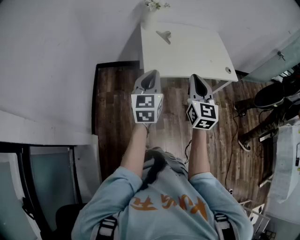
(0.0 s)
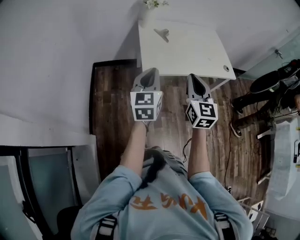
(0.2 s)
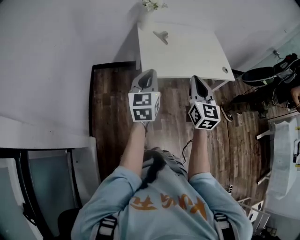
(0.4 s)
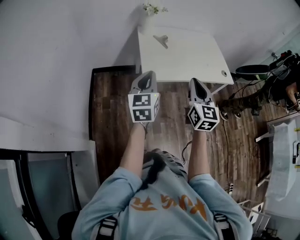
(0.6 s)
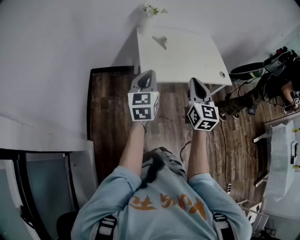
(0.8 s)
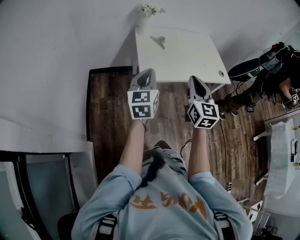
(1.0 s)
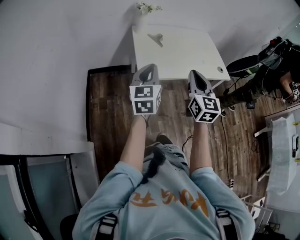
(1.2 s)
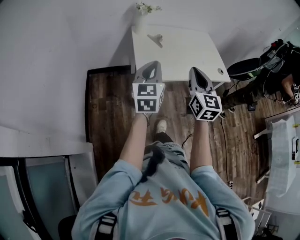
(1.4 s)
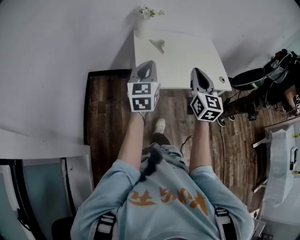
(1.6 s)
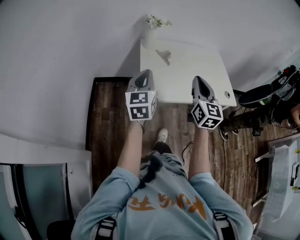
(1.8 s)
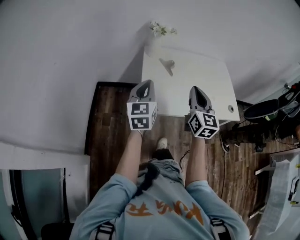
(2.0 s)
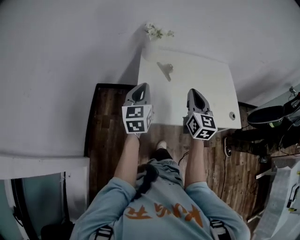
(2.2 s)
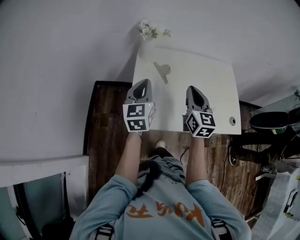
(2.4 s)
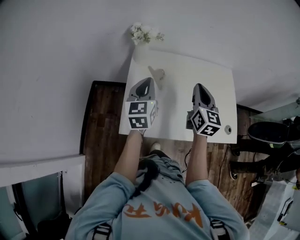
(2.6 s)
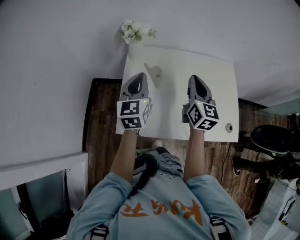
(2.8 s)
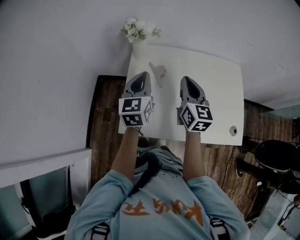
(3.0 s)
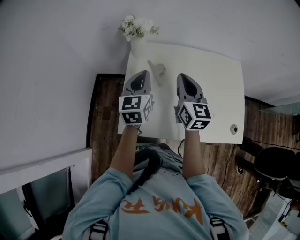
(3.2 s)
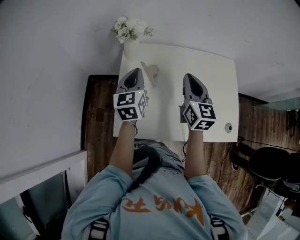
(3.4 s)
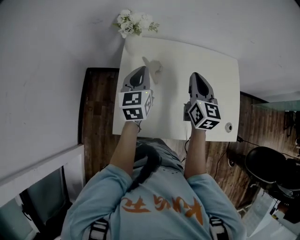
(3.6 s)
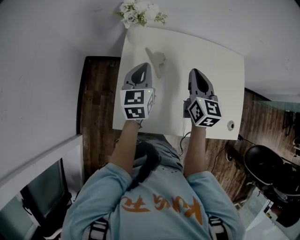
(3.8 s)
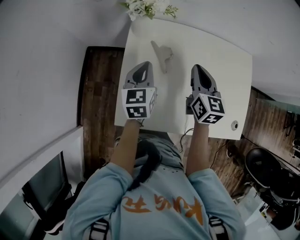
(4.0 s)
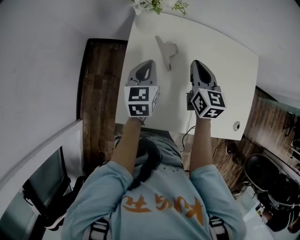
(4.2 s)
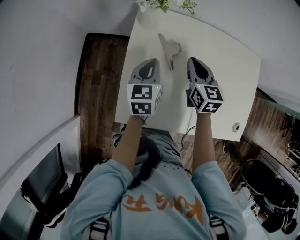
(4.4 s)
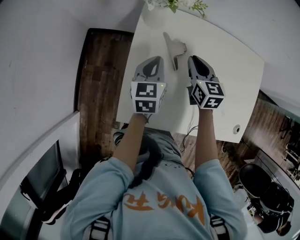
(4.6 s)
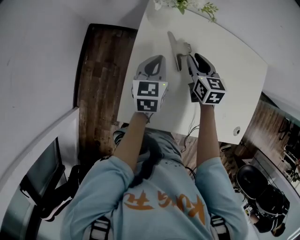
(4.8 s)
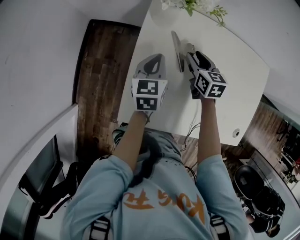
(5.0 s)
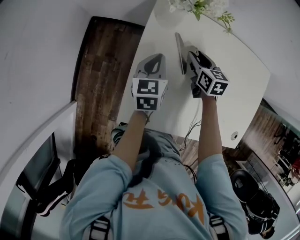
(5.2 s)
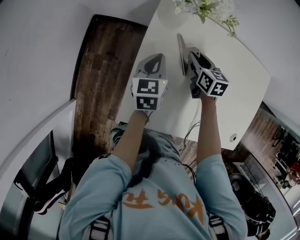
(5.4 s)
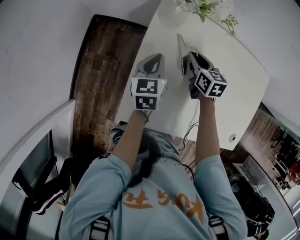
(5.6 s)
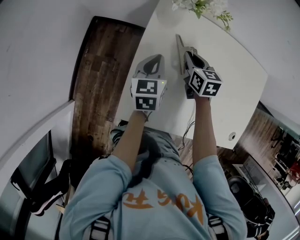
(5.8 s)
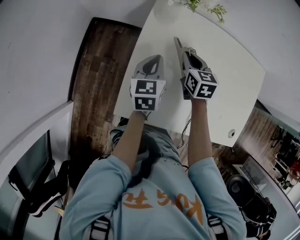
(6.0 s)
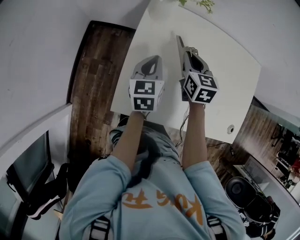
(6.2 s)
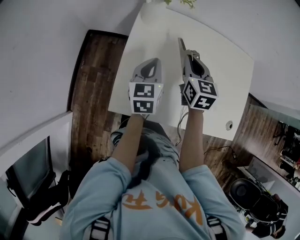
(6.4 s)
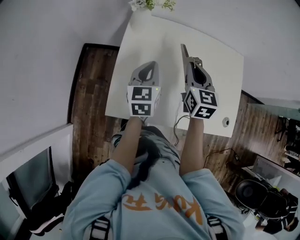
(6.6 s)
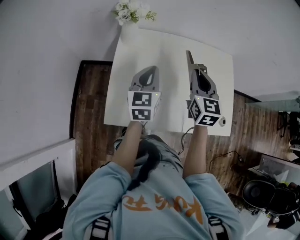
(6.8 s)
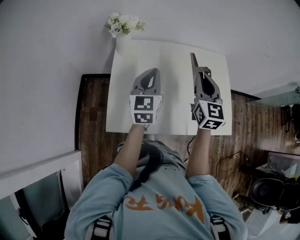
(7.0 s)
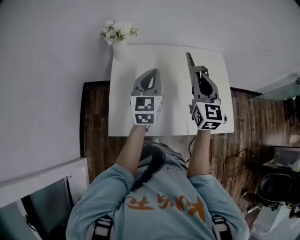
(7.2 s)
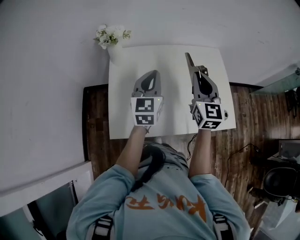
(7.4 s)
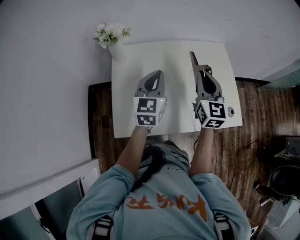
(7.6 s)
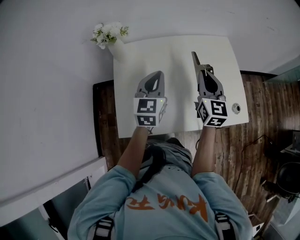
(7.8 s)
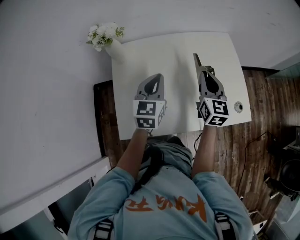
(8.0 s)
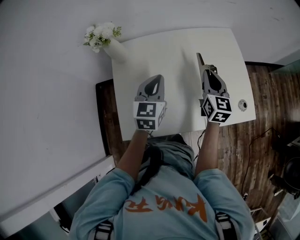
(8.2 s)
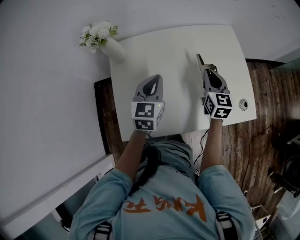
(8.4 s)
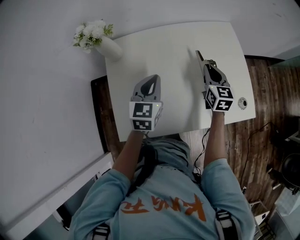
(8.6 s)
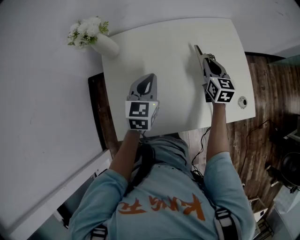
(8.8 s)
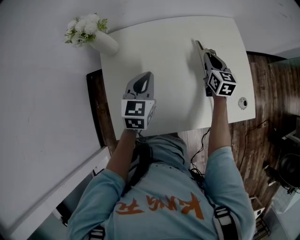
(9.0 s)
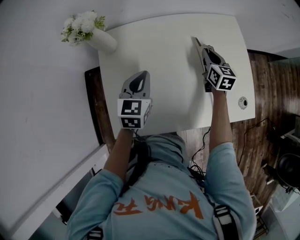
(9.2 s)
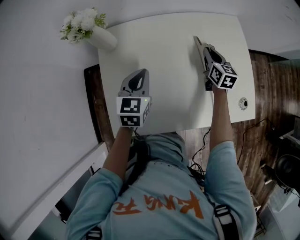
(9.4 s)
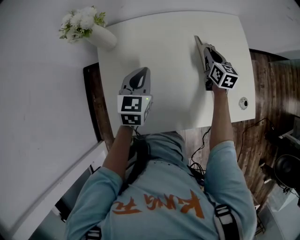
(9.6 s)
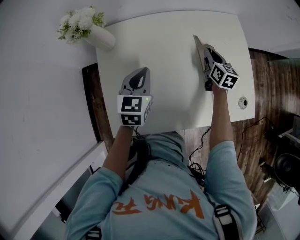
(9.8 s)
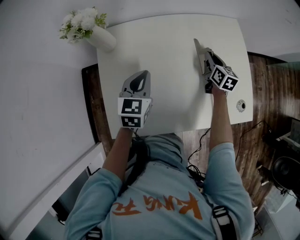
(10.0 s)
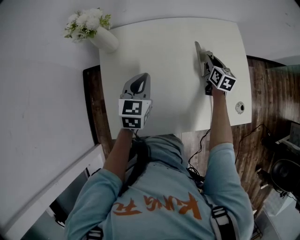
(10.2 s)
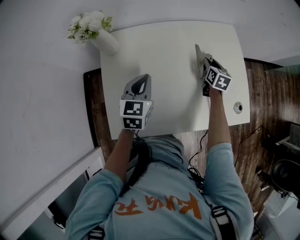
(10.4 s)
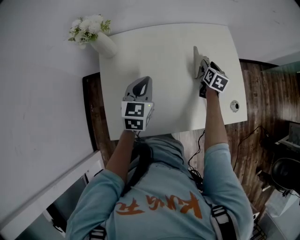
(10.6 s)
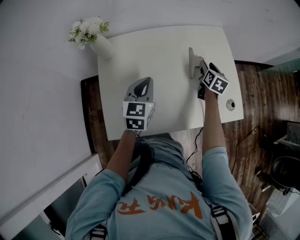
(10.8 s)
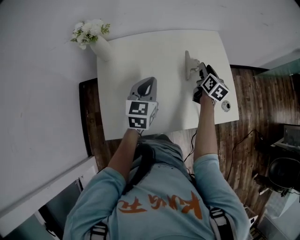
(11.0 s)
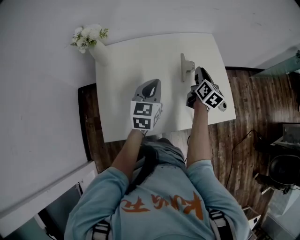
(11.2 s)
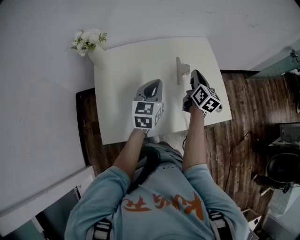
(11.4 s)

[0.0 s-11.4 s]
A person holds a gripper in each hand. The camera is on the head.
0.0 to 1.4 s: The left gripper moves forward, approximately 5 cm.
1.4 to 2.8 s: The grippers both shift forward by about 40 cm.
2.8 to 4.2 s: The left gripper travels downward and forward by about 15 cm. The right gripper travels downward, forward and to the left by some 15 cm.
4.2 to 5.6 s: The left gripper heads downward, covering about 5 cm. Meanwhile the right gripper is displaced downward, forward and to the left by approximately 15 cm, rotates some 20 degrees, and opens and closes again.
5.6 to 7.2 s: The left gripper shifts approximately 30 cm upward, to the right and backward, and rotates about 30 degrees; the right gripper goes approximately 40 cm upward, backward and to the right, and points its fingers roughly 30 degrees further upward.
7.2 to 8.6 s: The left gripper is displaced downward by about 10 cm, and changes its angle by some 20 degrees. Meanwhile the right gripper goes about 25 cm downward, to the right and forward, and rotates some 20 degrees.
8.6 to 10.0 s: The right gripper shifts approximately 10 cm downward and forward. Meanwhile the left gripper ends up some 5 cm from where it was.
10.0 to 11.4 s: The left gripper heads to the right and upward, covering about 15 cm; the right gripper travels upward and backward by about 20 cm, and opens and closes again.

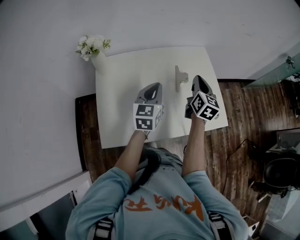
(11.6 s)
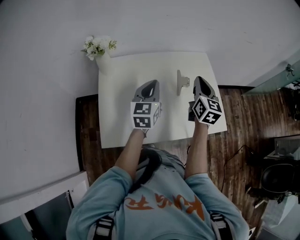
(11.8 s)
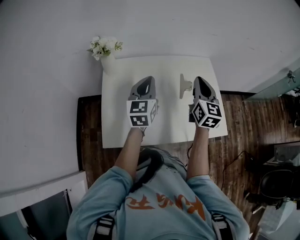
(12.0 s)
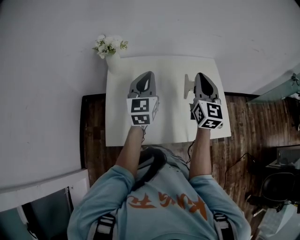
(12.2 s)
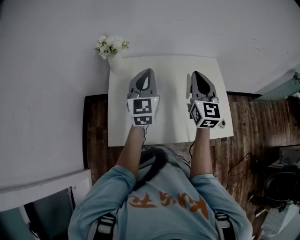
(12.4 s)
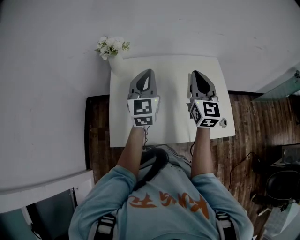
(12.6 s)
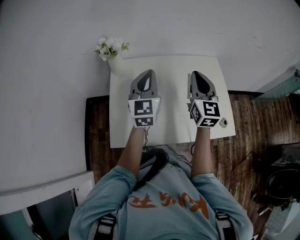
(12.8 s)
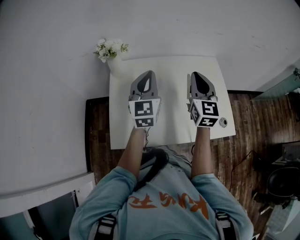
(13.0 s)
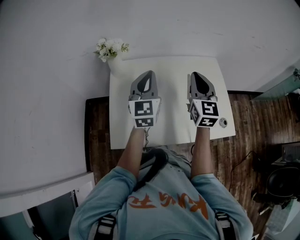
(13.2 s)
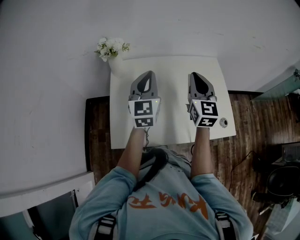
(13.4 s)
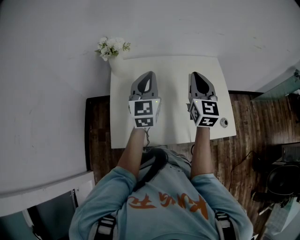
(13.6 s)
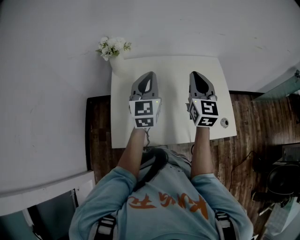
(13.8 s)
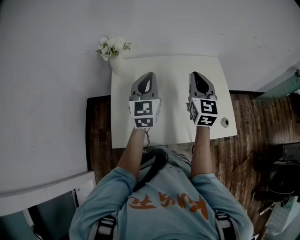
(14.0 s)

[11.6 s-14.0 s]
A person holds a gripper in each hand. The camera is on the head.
11.6 to 12.8 s: The right gripper is displaced to the left and upward by roughly 15 cm, and changes its angle by roughly 30 degrees. Meanwhile the left gripper shifts approximately 15 cm upward and to the left, and turns by approximately 20 degrees.
12.8 to 14.0 s: The grippers make only small movements.

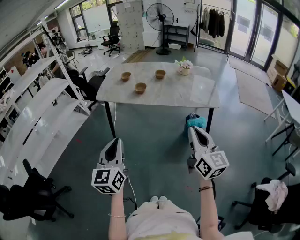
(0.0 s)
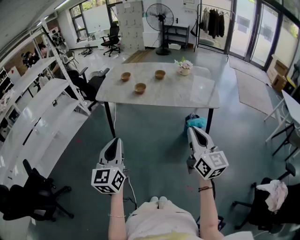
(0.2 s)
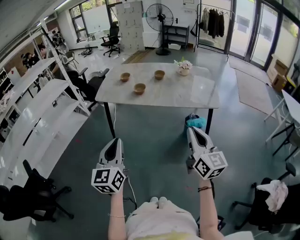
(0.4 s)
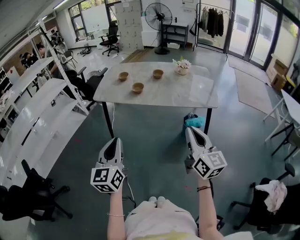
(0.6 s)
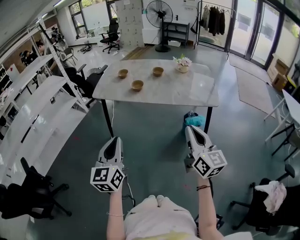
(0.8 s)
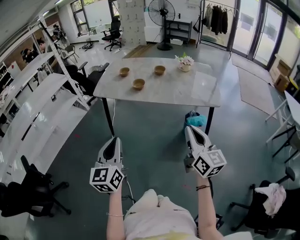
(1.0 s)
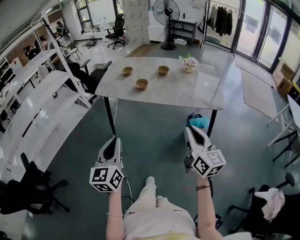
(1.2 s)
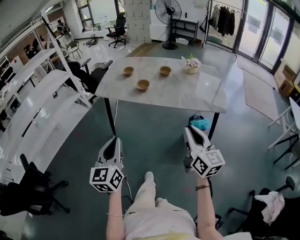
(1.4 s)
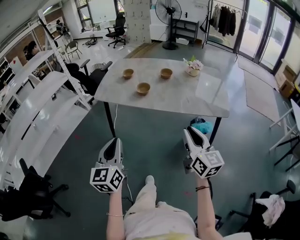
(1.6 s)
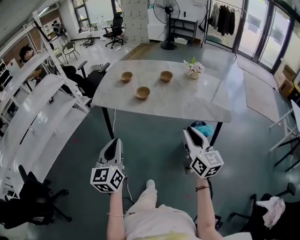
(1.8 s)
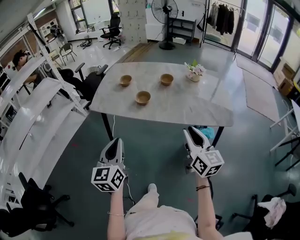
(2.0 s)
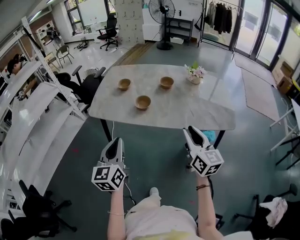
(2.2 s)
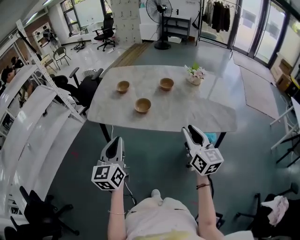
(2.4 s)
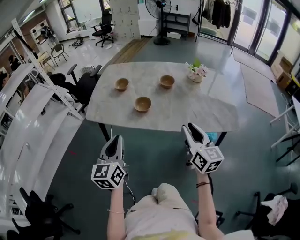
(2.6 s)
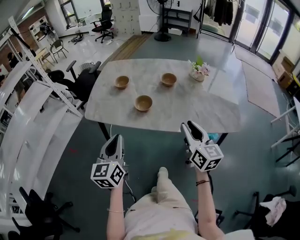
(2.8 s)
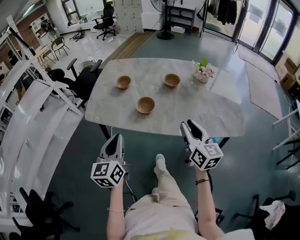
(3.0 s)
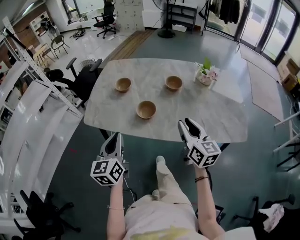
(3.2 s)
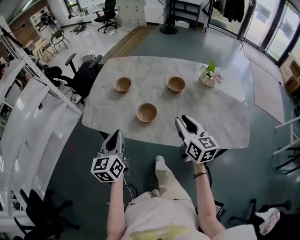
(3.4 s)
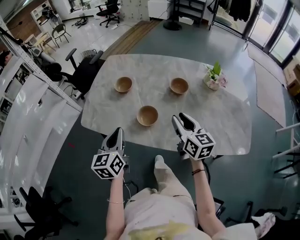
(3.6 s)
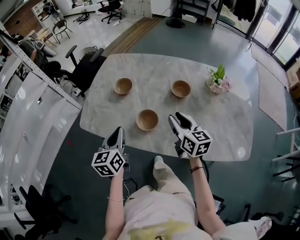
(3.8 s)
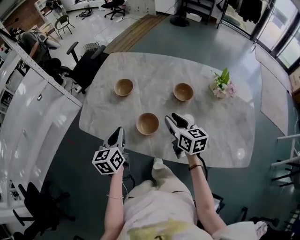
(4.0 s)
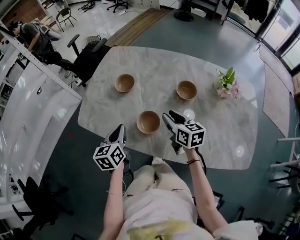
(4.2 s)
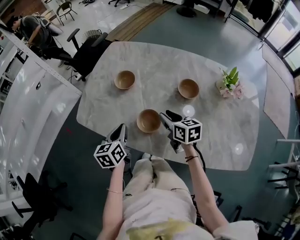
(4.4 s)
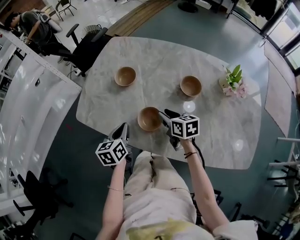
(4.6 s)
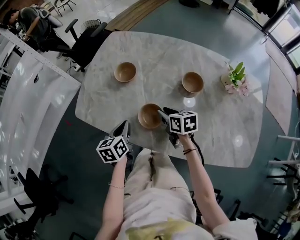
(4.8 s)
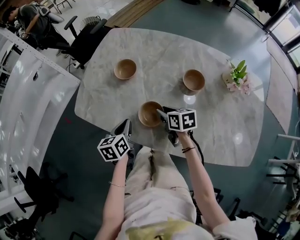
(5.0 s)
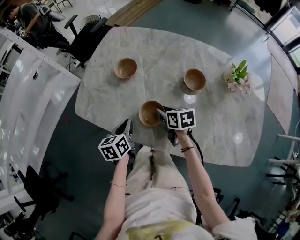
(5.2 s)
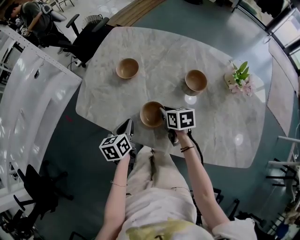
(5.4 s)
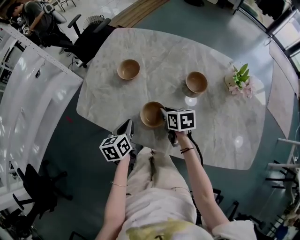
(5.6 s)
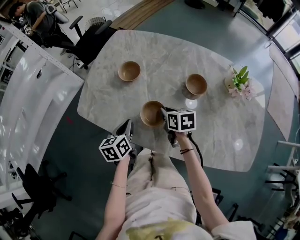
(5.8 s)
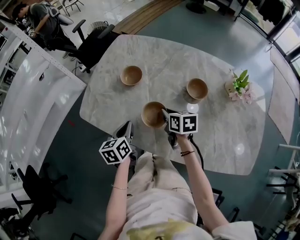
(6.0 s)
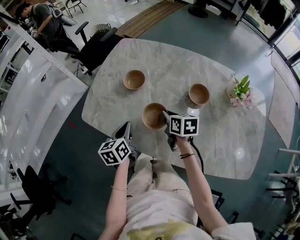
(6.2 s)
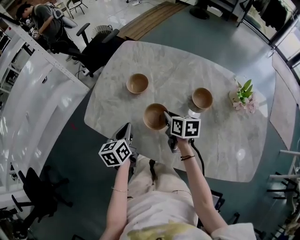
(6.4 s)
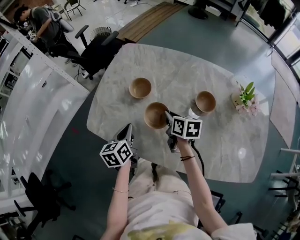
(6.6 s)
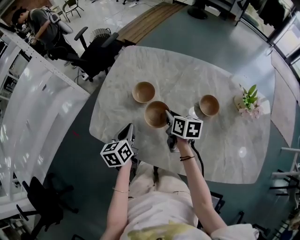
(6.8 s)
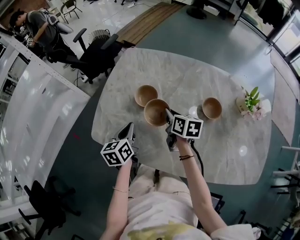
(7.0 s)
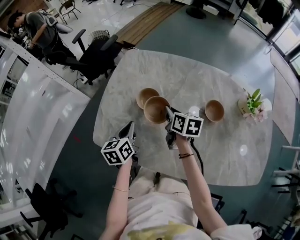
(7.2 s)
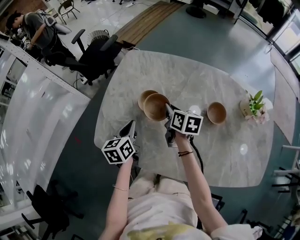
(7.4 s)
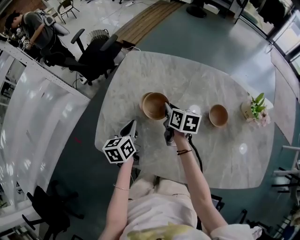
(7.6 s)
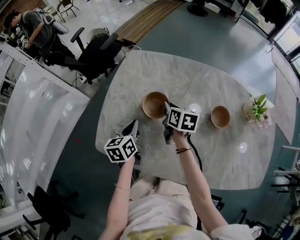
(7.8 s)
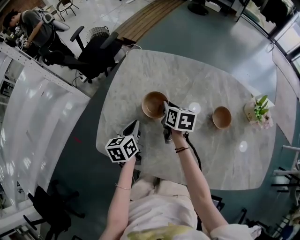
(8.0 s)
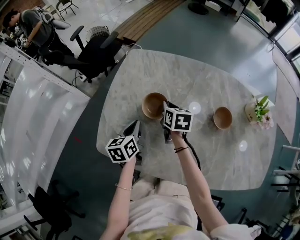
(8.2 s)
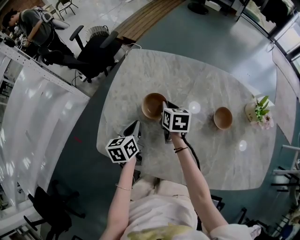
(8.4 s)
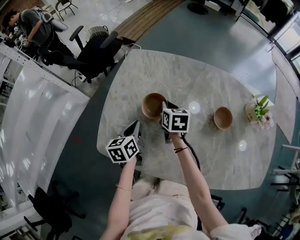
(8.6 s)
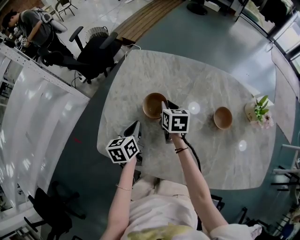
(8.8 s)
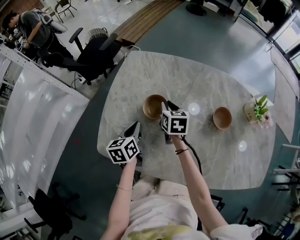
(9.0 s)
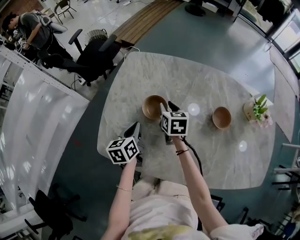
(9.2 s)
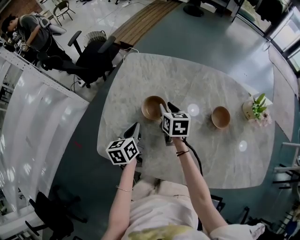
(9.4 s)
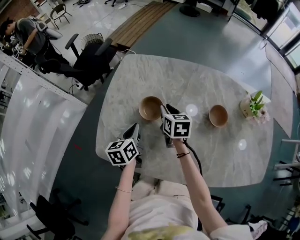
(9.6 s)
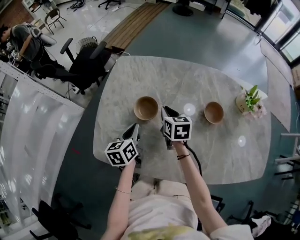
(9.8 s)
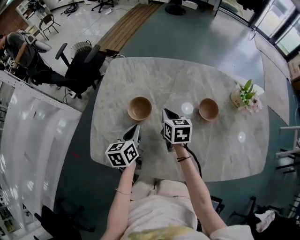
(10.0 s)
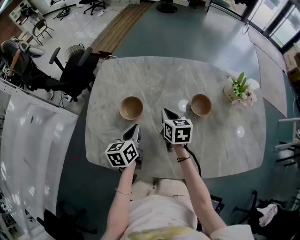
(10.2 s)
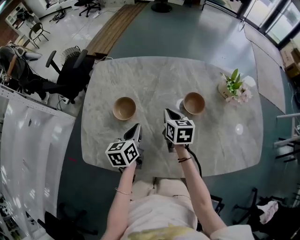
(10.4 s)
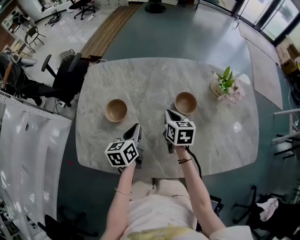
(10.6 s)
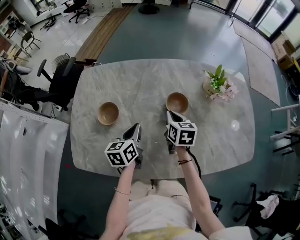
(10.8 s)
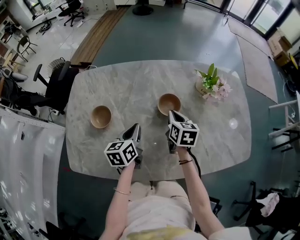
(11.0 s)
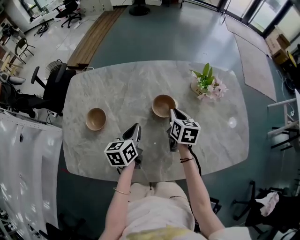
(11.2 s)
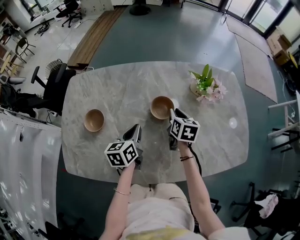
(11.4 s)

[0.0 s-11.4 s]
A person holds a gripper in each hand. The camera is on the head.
0.0 to 1.4 s: Both grippers move forward, about 5 cm.
1.4 to 2.8 s: Both grippers move forward, roughly 30 cm.
2.8 to 4.2 s: Both grippers travel together forward and downward, about 30 cm. The left gripper changes its angle by some 20 degrees; the right gripper swivels approximately 30 degrees.
4.2 to 5.6 s: The grippers both shift downward by about 10 cm. The right gripper changes its angle by about 20 degrees, and closes its fingers.
5.6 to 7.2 s: The right gripper travels forward by approximately 15 cm, and turns by some 20 degrees. Meanwhile the left gripper heads forward and to the left, covering some 15 cm.
7.2 to 8.6 s: The two grippers go some 5 cm forward.
8.6 to 10.0 s: The right gripper heads to the right and backward, covering some 10 cm, and opens and closes again. Meanwhile the left gripper goes some 5 cm to the right.
10.0 to 11.4 s: Both grippers move to the right, about 25 cm. The right gripper rotates approximately 20 degrees.
